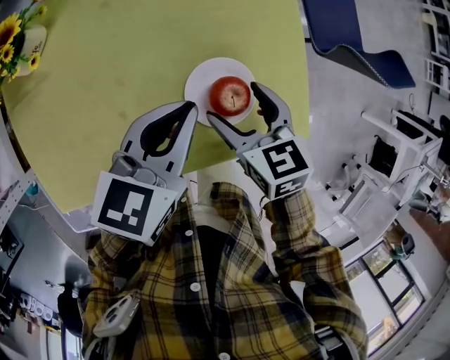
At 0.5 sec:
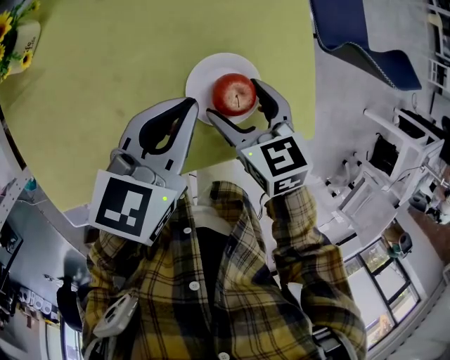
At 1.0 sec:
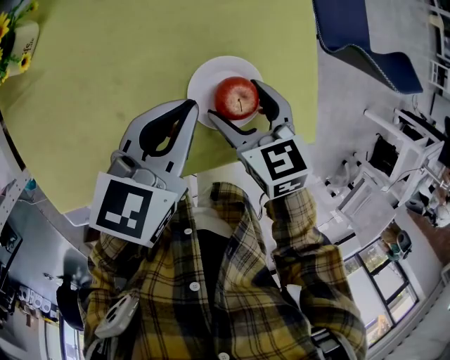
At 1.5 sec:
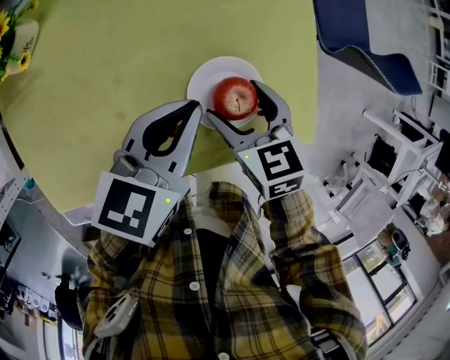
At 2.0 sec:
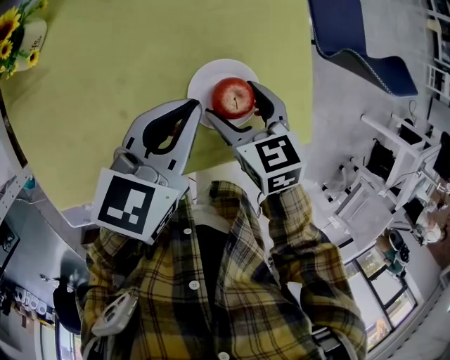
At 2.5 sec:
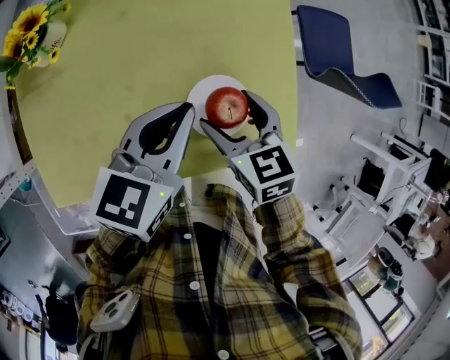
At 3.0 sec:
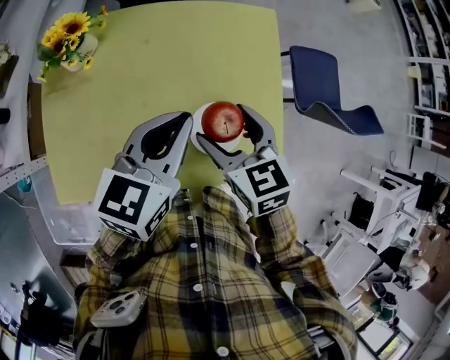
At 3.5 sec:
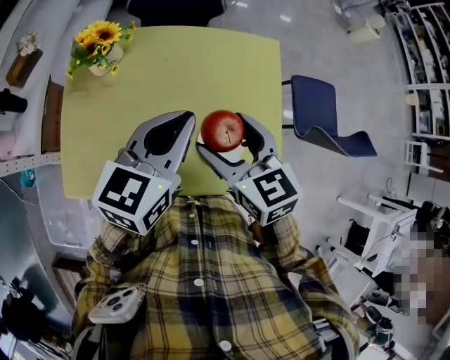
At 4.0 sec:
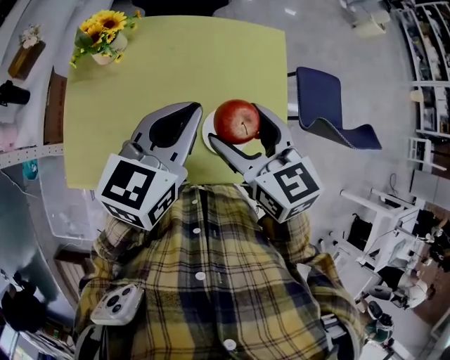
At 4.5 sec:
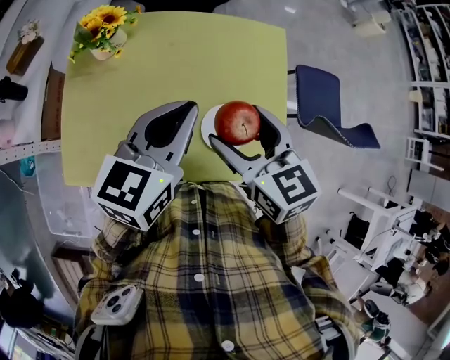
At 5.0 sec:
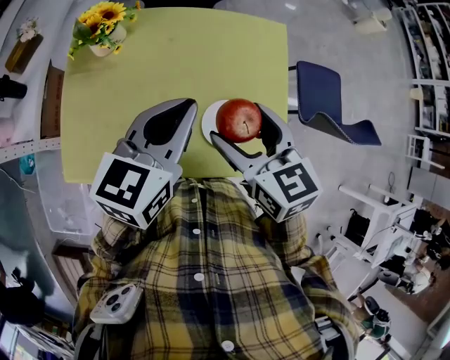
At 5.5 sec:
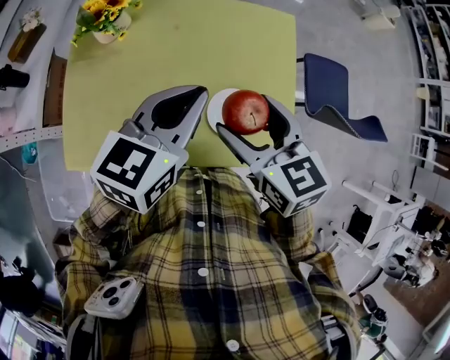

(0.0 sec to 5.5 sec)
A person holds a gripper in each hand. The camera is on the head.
0.0 sec - 2.0 sec: The grippers make only small movements.
2.0 sec - 3.5 sec: The two grippers go about 20 cm upward. The right gripper turns by roughly 30 degrees; the left gripper turns by roughly 20 degrees.
3.5 sec - 5.5 sec: There are only small adjustments of the grippers.

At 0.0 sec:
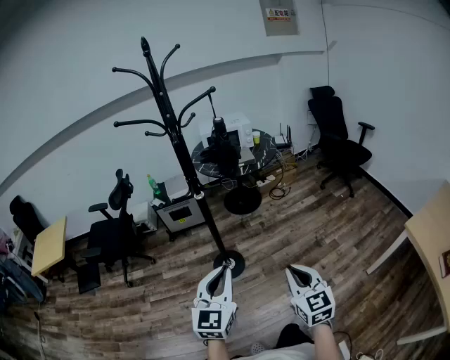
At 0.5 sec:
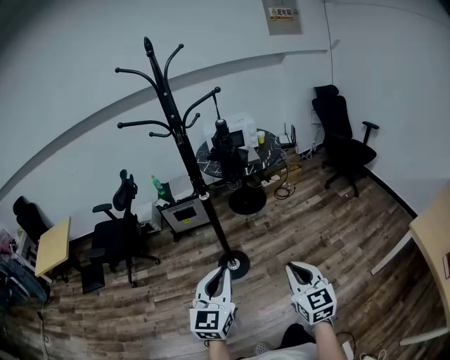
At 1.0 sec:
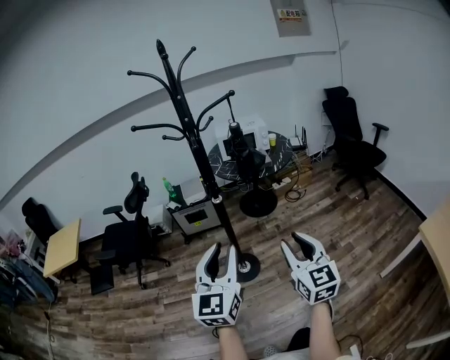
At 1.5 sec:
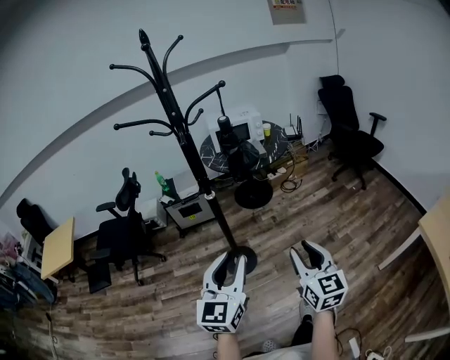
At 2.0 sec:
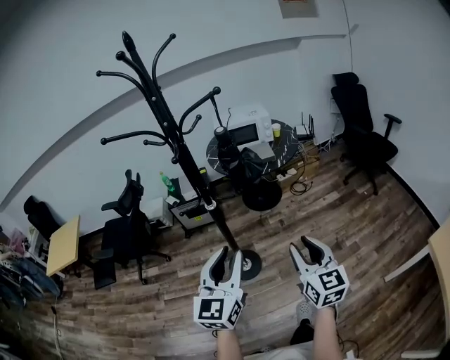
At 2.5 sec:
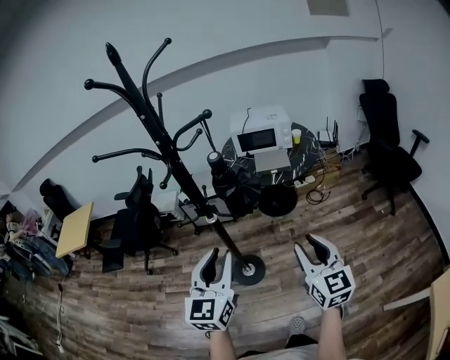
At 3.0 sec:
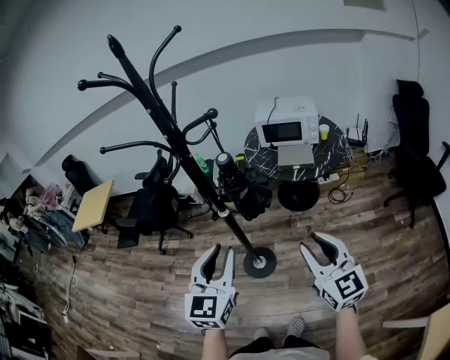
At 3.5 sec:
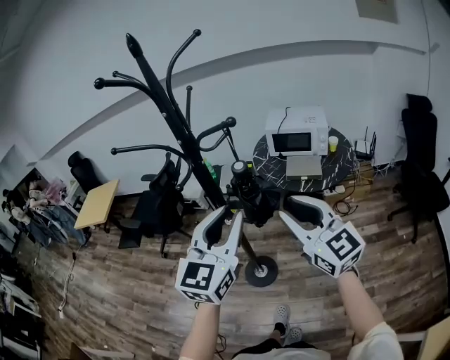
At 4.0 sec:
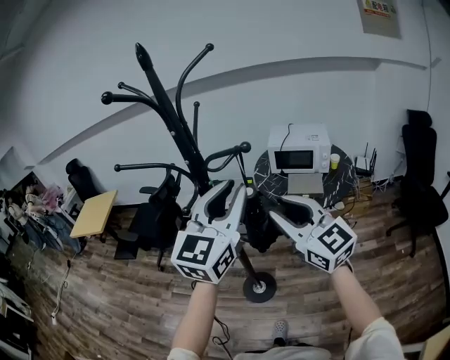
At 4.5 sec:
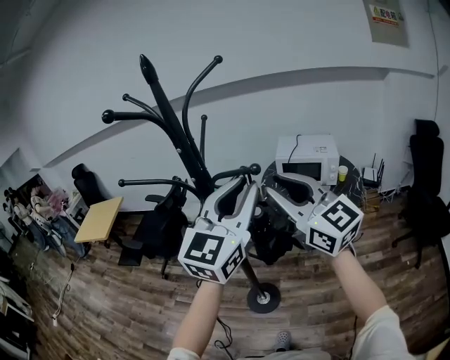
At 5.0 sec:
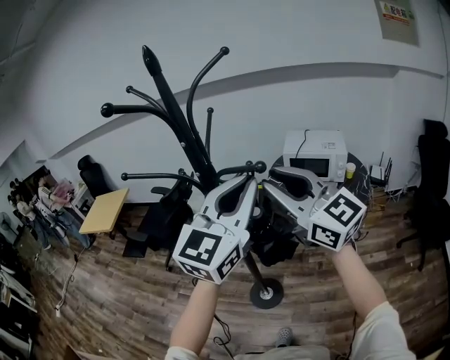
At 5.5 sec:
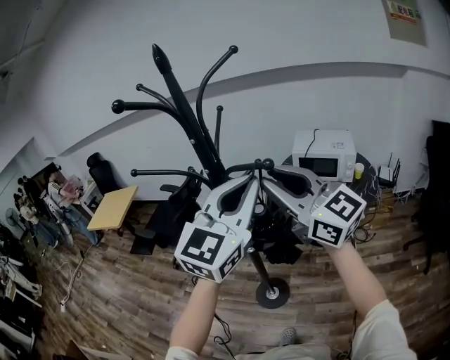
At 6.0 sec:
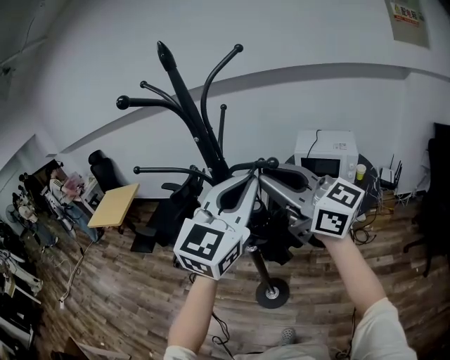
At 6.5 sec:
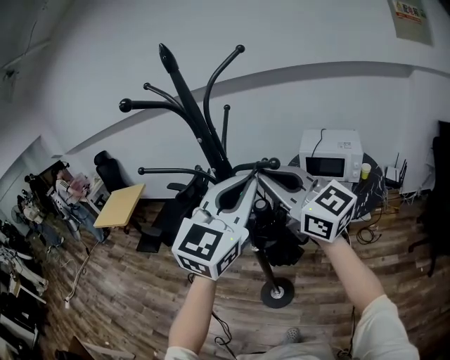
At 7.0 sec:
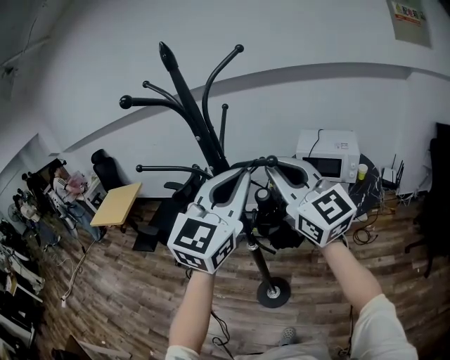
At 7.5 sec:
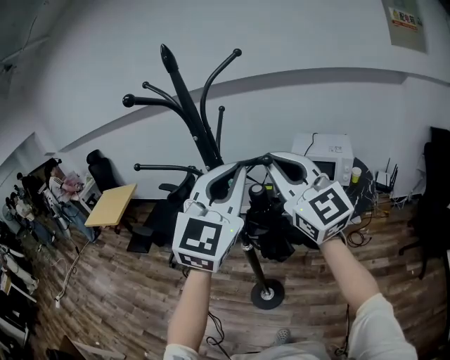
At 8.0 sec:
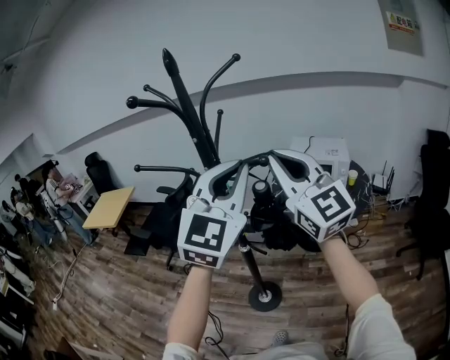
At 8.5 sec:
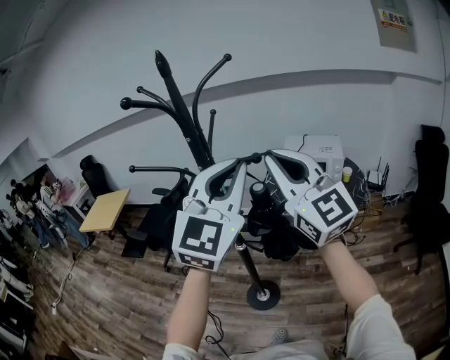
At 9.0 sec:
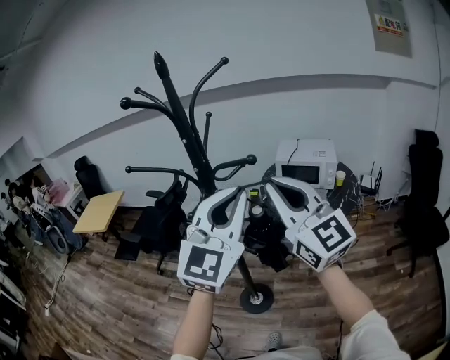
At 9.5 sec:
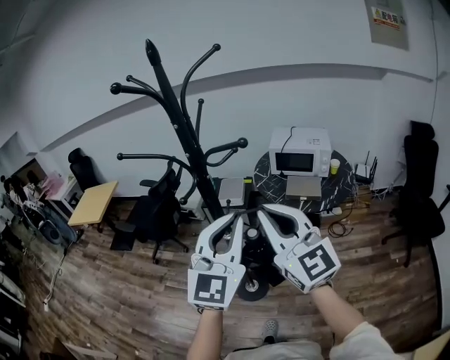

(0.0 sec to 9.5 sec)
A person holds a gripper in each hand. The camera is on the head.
0.0 sec - 2.0 sec: The two grippers go about 15 cm forward. The left gripper opens its fingers, while the right gripper opens up.
2.0 sec - 4.0 sec: The right gripper shifts by roughly 35 cm, and turns by some 50 degrees. The left gripper moves about 35 cm.
4.0 sec - 5.5 sec: The right gripper is displaced upward and forward by roughly 10 cm.
5.5 sec - 7.5 sec: The right gripper rotates roughly 20 degrees, and closes.
7.5 sec - 9.5 sec: The right gripper moves backward and downward, roughly 15 cm. Meanwhile the left gripper shifts some 15 cm downward and backward.

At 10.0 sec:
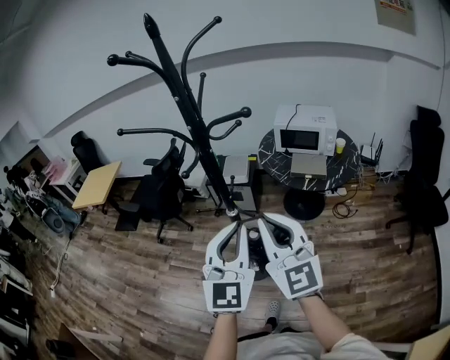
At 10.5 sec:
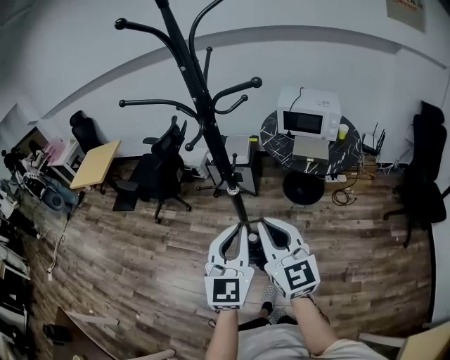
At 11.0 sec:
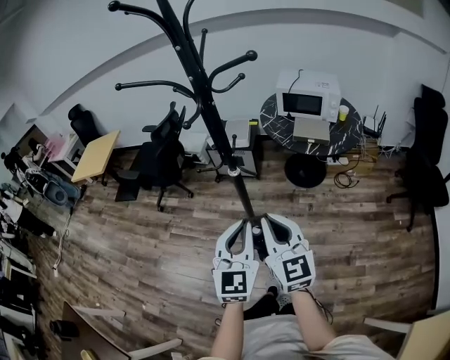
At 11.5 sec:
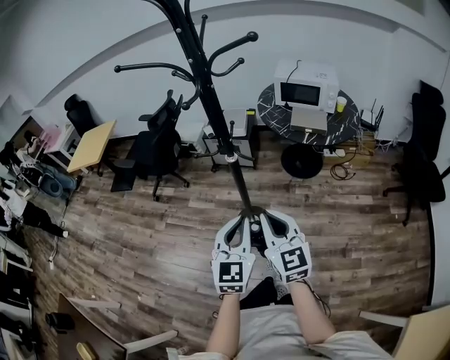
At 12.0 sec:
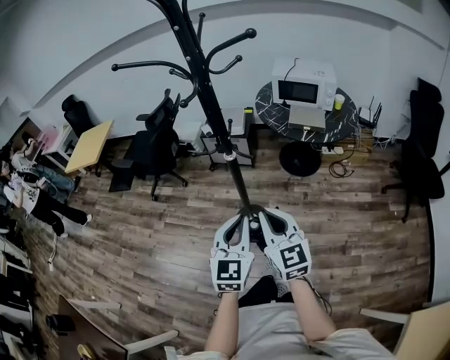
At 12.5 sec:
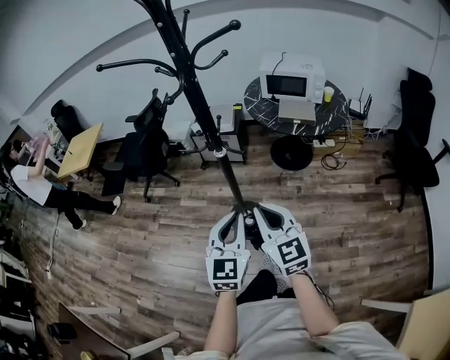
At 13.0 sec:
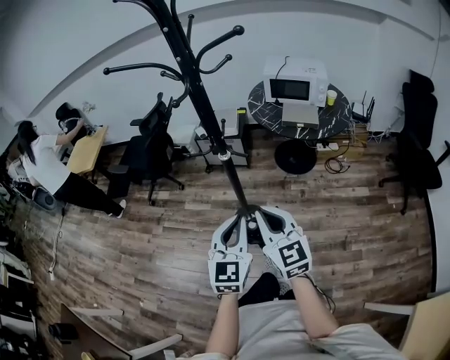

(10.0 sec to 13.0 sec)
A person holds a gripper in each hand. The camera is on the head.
10.0 sec - 11.5 sec: The grippers both shift downward by some 20 cm.
11.5 sec - 13.0 sec: The two grippers keep their place.

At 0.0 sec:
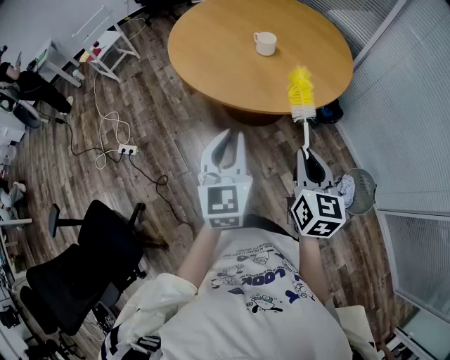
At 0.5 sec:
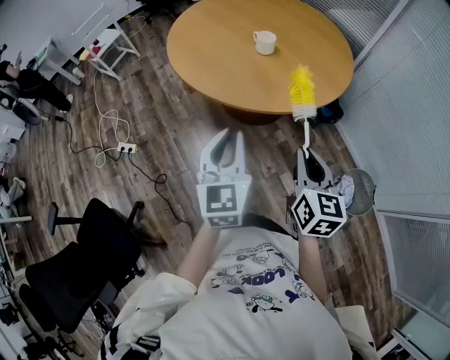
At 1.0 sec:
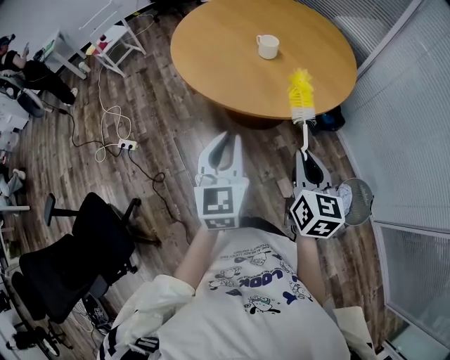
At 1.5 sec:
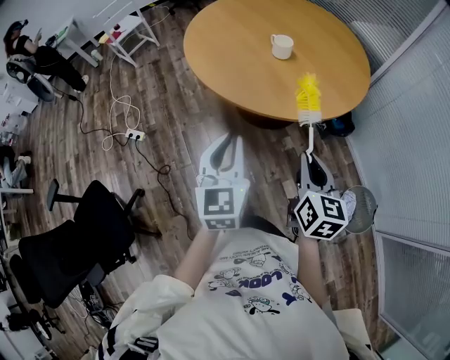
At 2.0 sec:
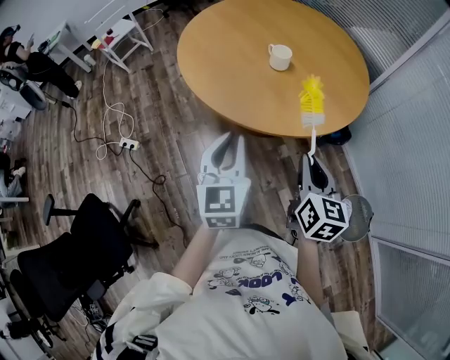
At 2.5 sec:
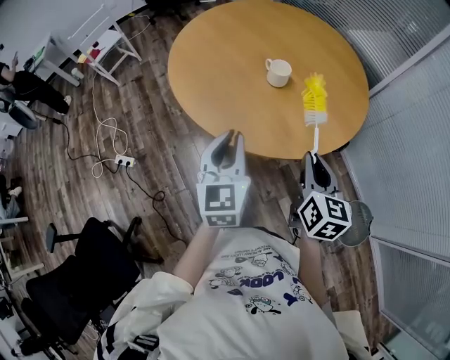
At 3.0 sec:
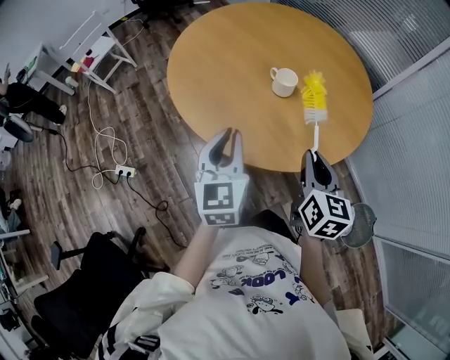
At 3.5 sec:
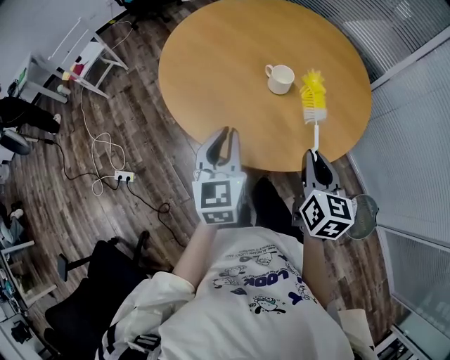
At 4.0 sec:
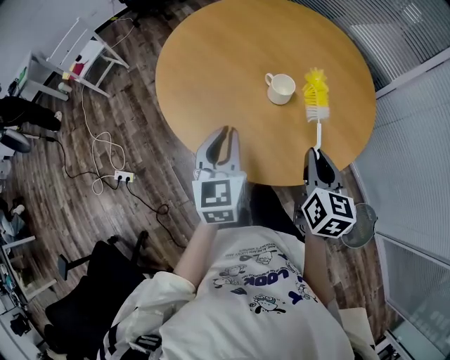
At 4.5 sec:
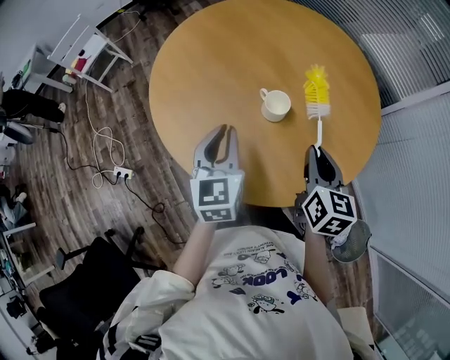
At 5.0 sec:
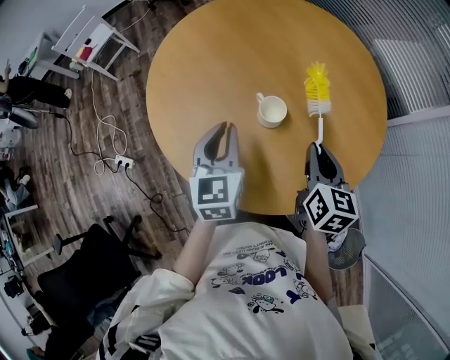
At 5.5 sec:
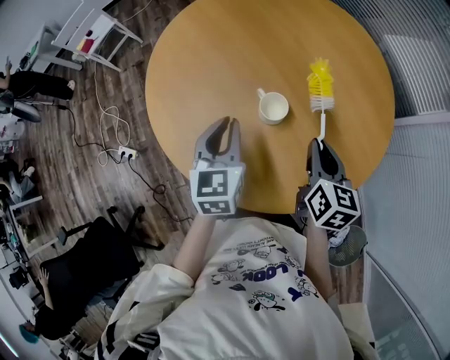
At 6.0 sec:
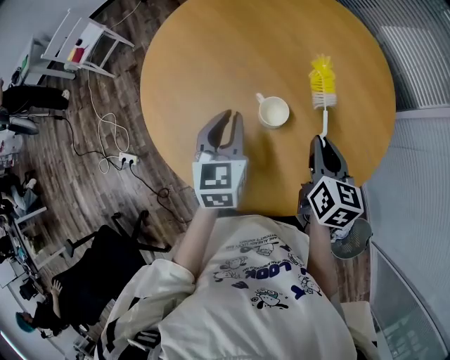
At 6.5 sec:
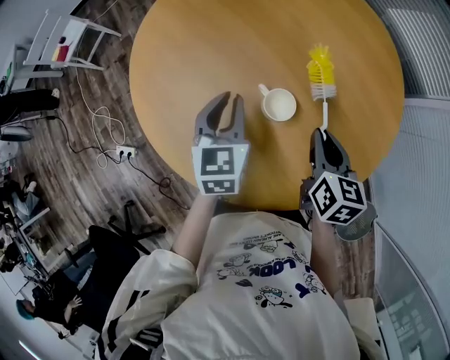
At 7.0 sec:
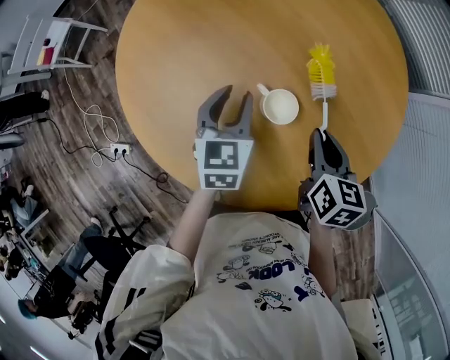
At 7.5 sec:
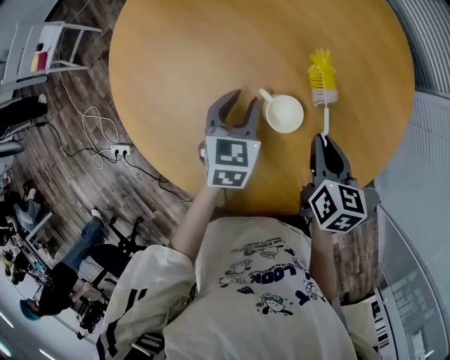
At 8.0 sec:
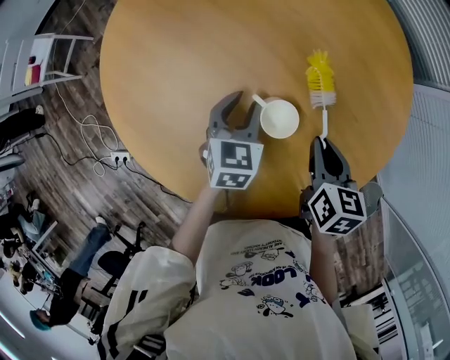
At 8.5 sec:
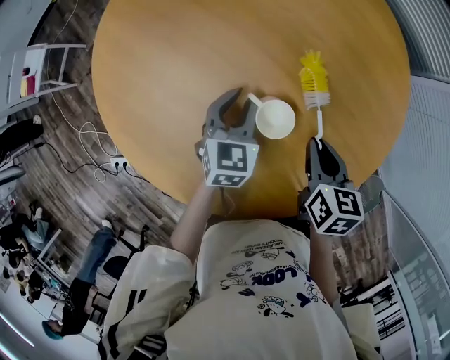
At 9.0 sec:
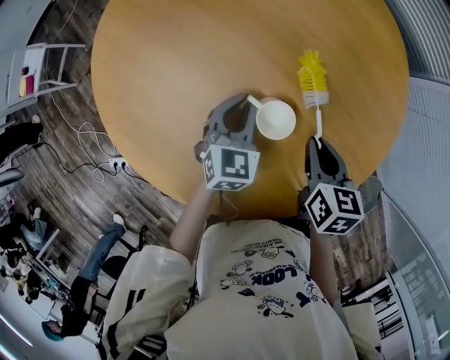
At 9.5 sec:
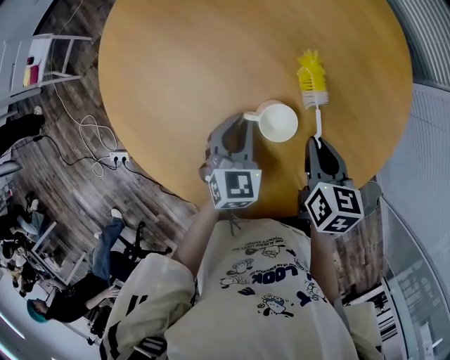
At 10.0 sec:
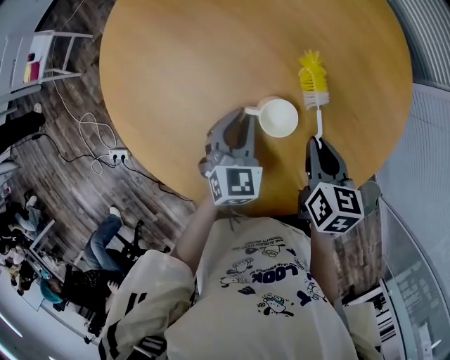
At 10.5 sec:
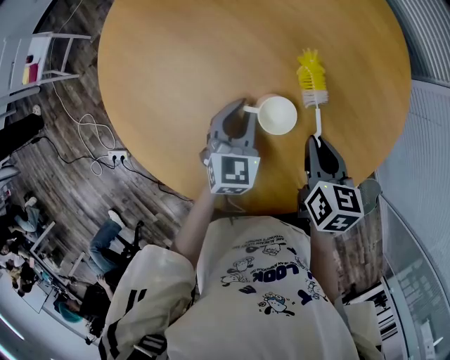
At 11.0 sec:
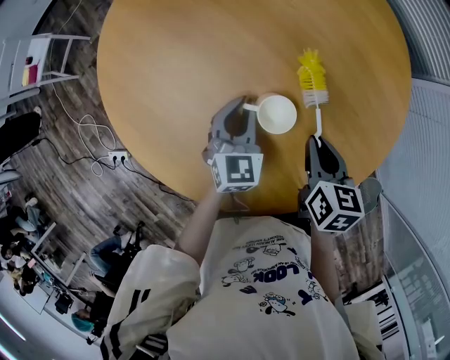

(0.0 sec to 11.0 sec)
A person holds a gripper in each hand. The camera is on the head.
0.0 sec - 2.0 sec: The two grippers go about 10 cm forward.
2.0 sec - 3.5 sec: Both grippers move forward, about 20 cm.
3.5 sec - 5.5 sec: The two grippers go about 25 cm forward and to the right.
5.5 sec - 7.5 sec: The right gripper moves downward, approximately 10 cm, while the left gripper is displaced downward and forward by about 20 cm, and turns by roughly 30 degrees.
7.5 sec - 9.0 sec: The left gripper closes up.
9.0 sec - 11.0 sec: The grippers move only a little.
